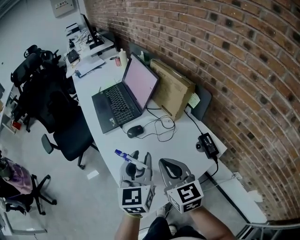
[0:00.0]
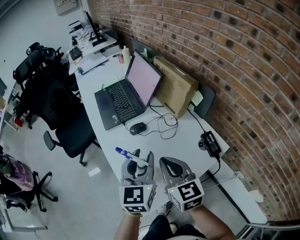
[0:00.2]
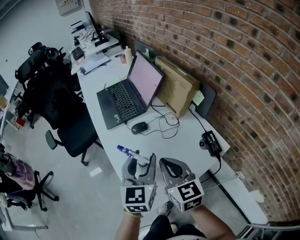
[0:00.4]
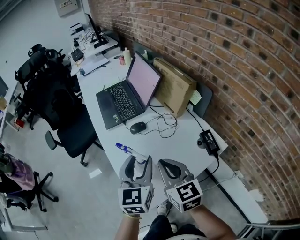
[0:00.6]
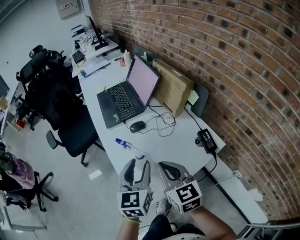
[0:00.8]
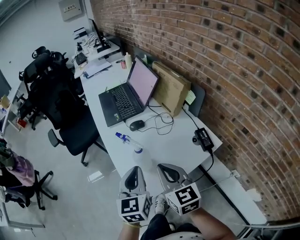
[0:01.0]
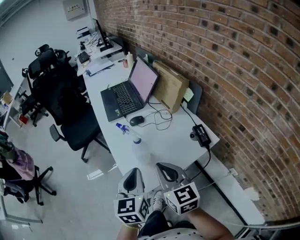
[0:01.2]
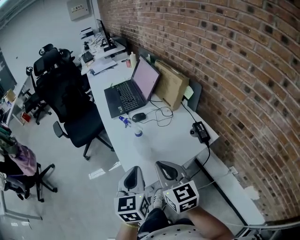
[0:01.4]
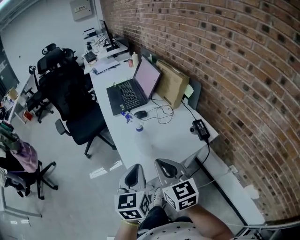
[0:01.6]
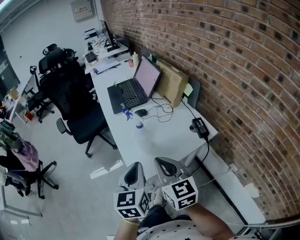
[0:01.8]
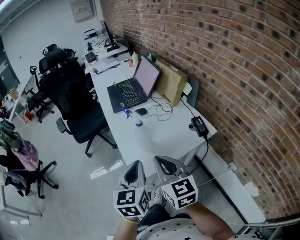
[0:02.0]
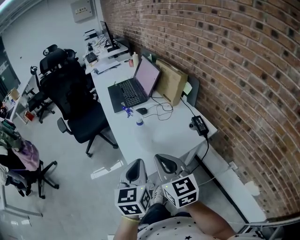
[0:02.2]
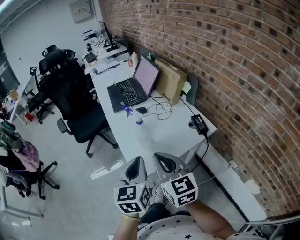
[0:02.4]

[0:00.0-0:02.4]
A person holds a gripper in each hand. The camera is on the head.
0:00.0 to 0:01.2: Both grippers travel together backward, approximately 15 cm. The left gripper closes.
0:01.2 to 0:02.4: The two grippers go about 5 cm backward.

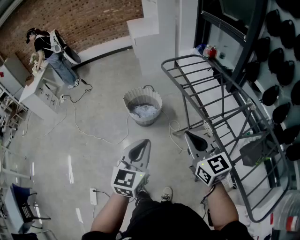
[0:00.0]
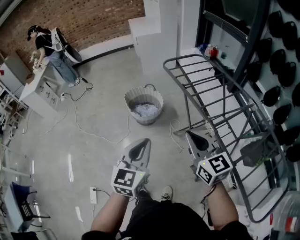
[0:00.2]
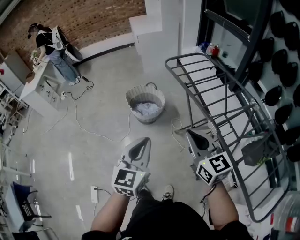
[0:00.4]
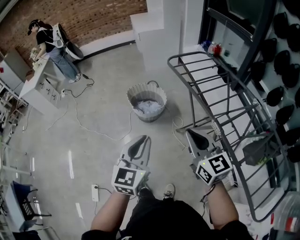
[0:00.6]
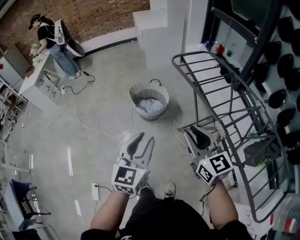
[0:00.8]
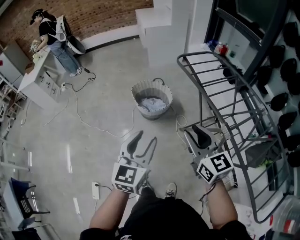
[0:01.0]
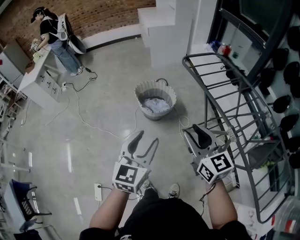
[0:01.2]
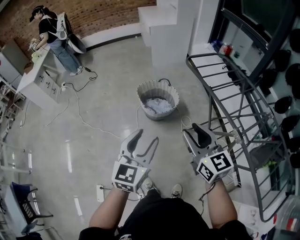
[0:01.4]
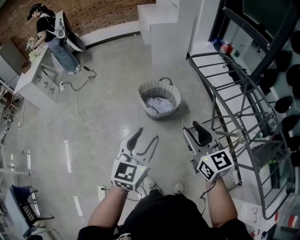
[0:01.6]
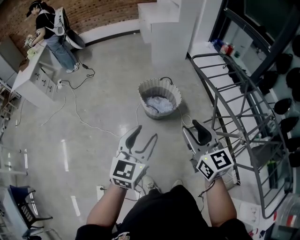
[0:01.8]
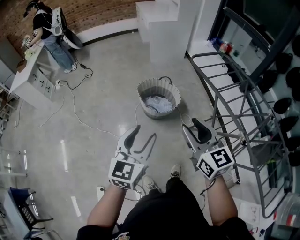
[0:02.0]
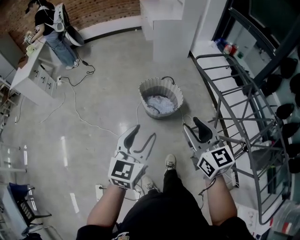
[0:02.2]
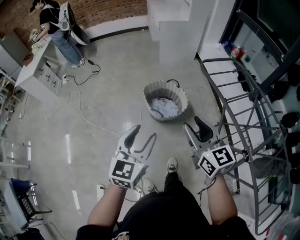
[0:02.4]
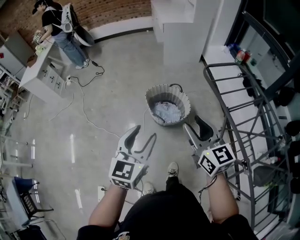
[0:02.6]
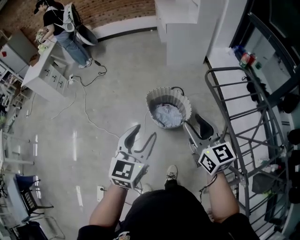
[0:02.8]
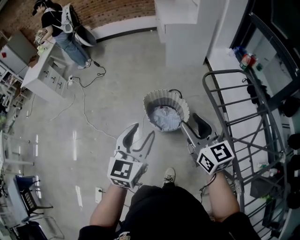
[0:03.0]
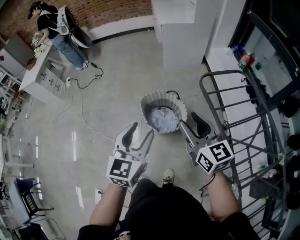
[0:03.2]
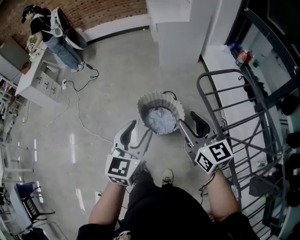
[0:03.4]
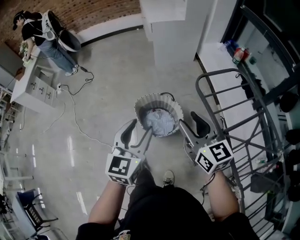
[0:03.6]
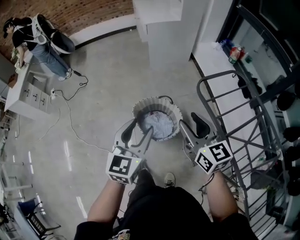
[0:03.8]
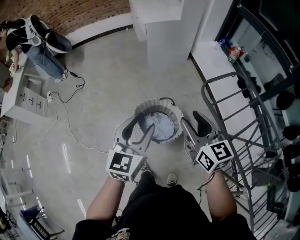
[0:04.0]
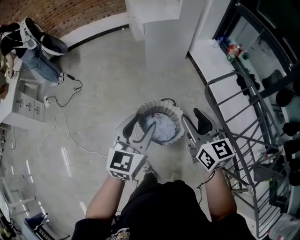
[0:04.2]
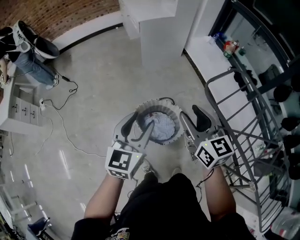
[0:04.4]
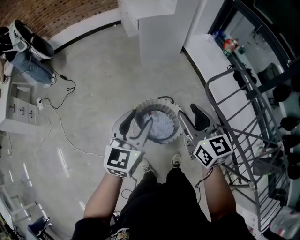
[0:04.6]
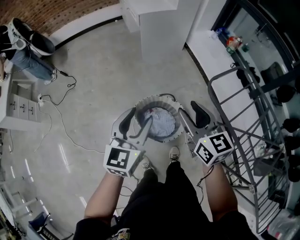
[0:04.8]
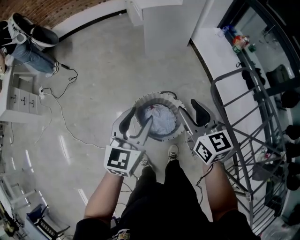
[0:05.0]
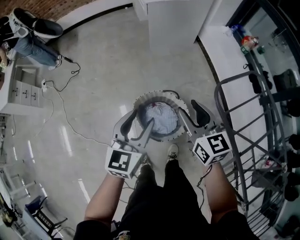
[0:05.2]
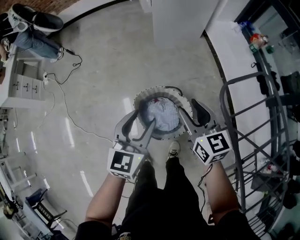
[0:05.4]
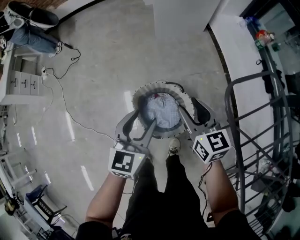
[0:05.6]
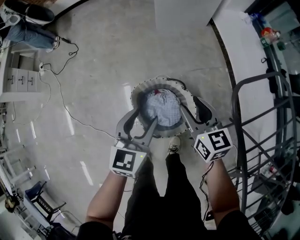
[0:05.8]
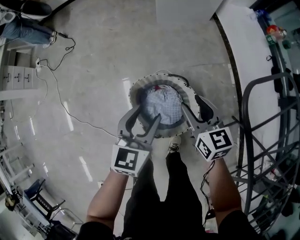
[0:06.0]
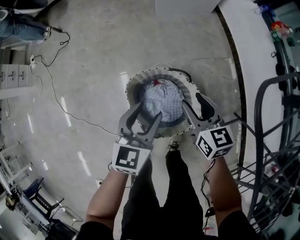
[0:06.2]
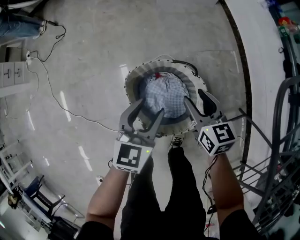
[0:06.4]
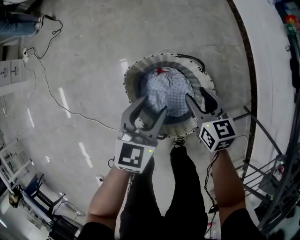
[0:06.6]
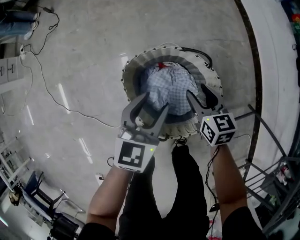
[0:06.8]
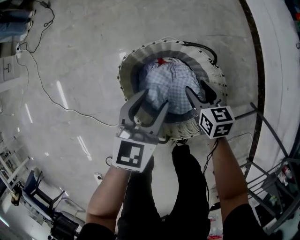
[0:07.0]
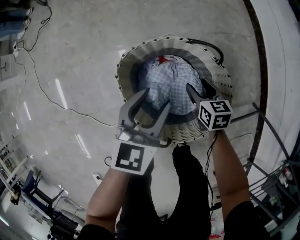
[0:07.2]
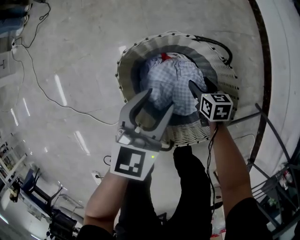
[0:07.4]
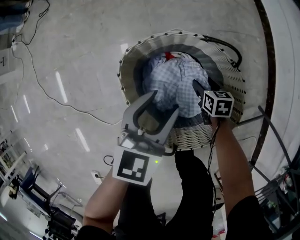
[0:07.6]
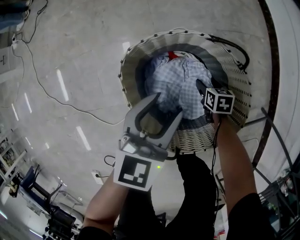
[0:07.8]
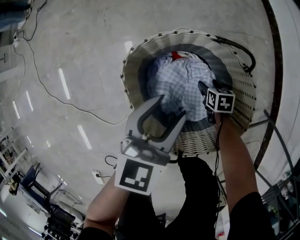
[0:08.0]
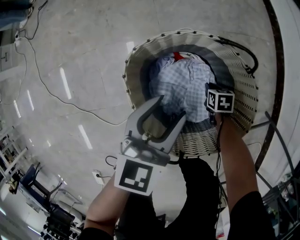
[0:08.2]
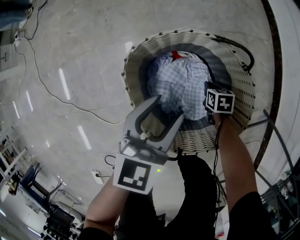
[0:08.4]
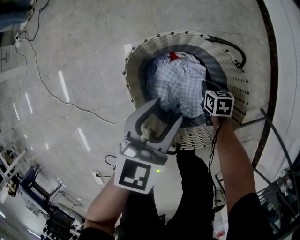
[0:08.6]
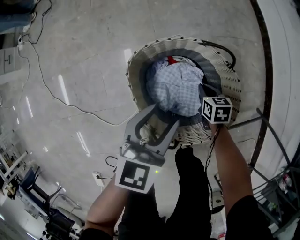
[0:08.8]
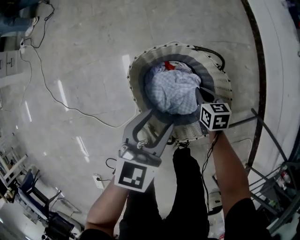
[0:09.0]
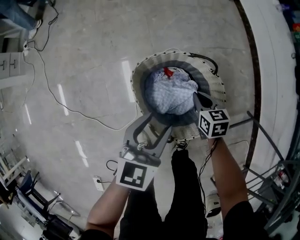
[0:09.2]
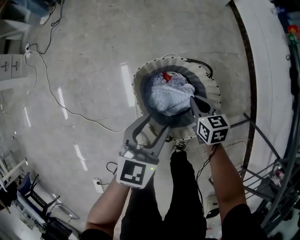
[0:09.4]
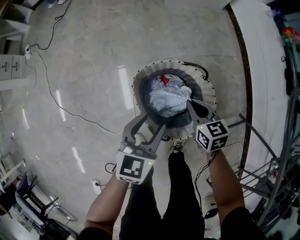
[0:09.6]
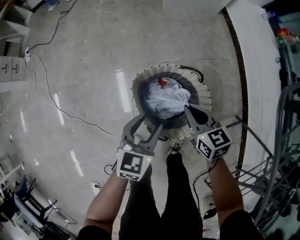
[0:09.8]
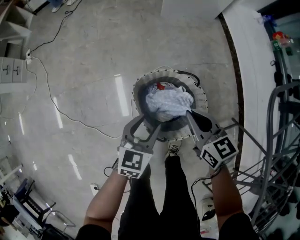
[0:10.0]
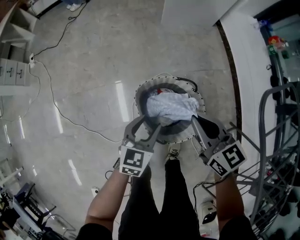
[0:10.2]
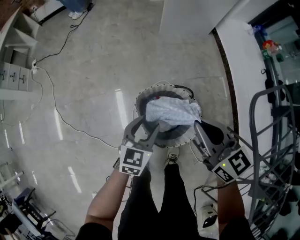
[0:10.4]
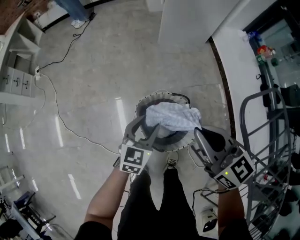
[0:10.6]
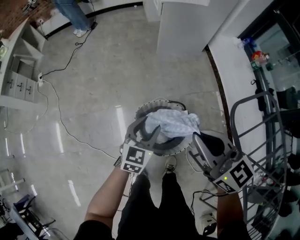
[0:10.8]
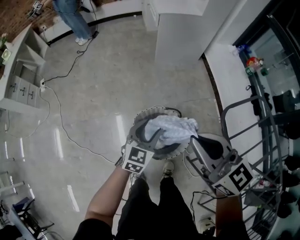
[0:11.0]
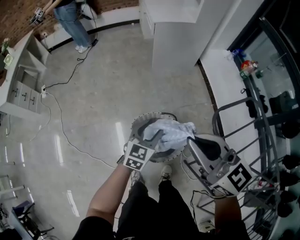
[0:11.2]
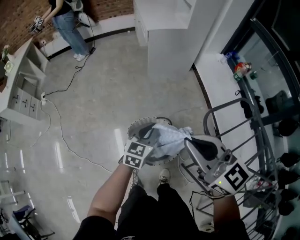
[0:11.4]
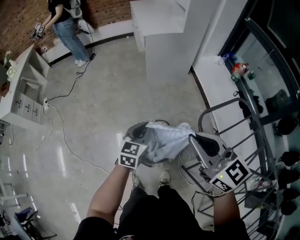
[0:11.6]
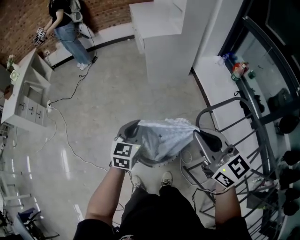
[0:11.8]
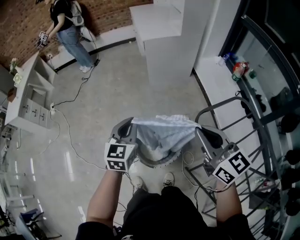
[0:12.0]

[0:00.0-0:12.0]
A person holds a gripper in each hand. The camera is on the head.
0:00.0 to 0:01.6: The grippers both shift to the left and forward by roughly 25 cm. The right gripper opens its fingers. Meanwhile the left gripper opens.
0:01.6 to 0:03.0: Both grippers travel together forward, some 25 cm.
0:03.0 to 0:04.4: The two grippers go about 25 cm forward.
0:04.4 to 0:06.0: The left gripper is displaced downward by about 25 cm; the right gripper travels downward and forward by roughly 35 cm.
0:06.0 to 0:07.6: The left gripper heads downward, covering some 30 cm, while the right gripper shifts roughly 50 cm downward, and angles its fingers downward, by about 30 degrees.
0:07.6 to 0:09.0: Both grippers travel together upward, about 10 cm. The right gripper closes.
0:09.0 to 0:10.4: The left gripper goes approximately 15 cm upward. The right gripper shifts about 50 cm upward, and points its fingers approximately 30 degrees further upward.
0:10.4 to 0:12.0: The right gripper travels upward and to the right by about 30 cm. The left gripper travels upward by roughly 30 cm, and closes its fingers.

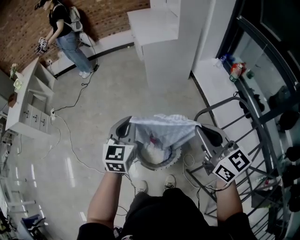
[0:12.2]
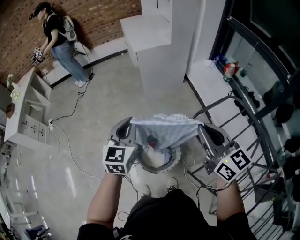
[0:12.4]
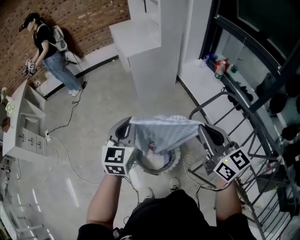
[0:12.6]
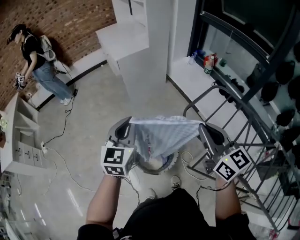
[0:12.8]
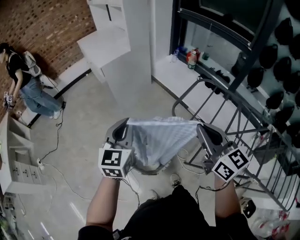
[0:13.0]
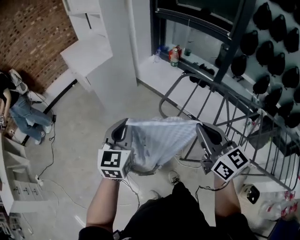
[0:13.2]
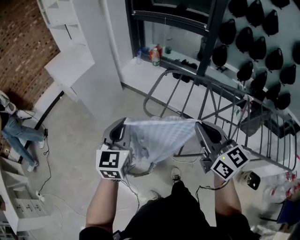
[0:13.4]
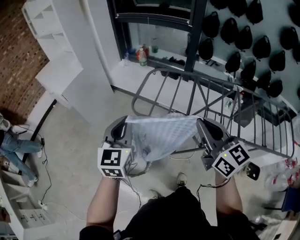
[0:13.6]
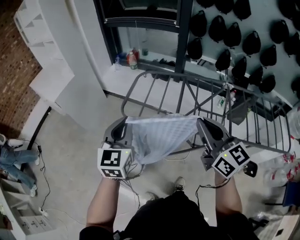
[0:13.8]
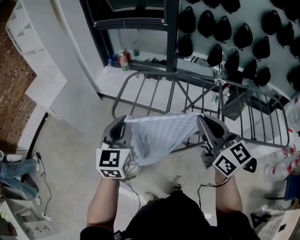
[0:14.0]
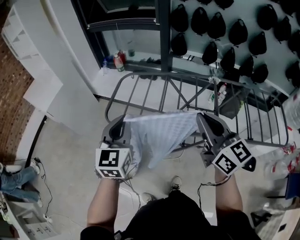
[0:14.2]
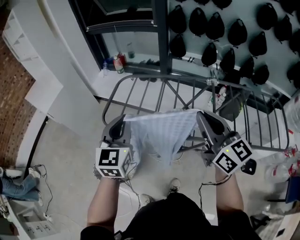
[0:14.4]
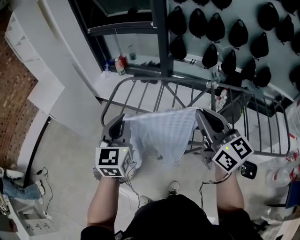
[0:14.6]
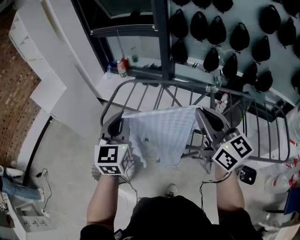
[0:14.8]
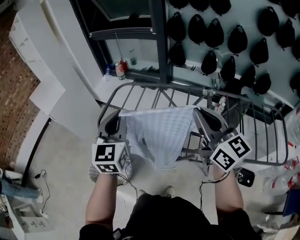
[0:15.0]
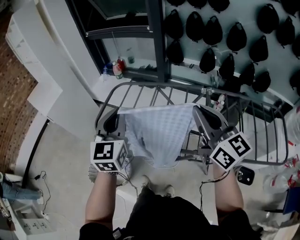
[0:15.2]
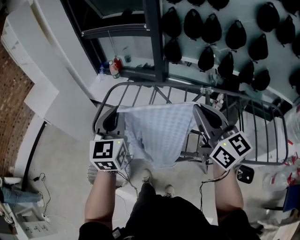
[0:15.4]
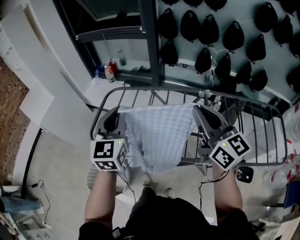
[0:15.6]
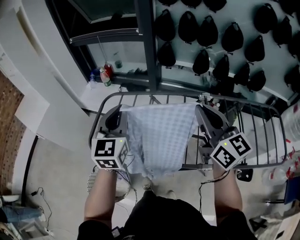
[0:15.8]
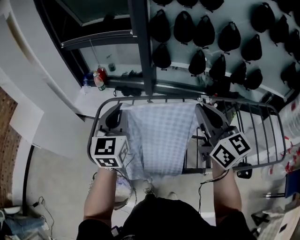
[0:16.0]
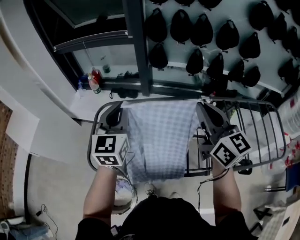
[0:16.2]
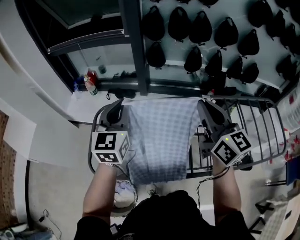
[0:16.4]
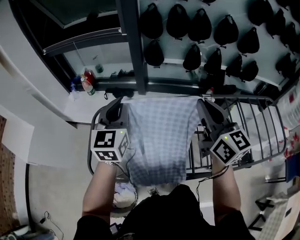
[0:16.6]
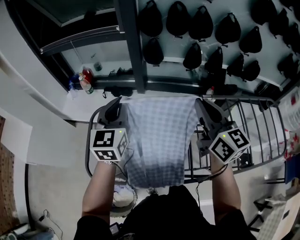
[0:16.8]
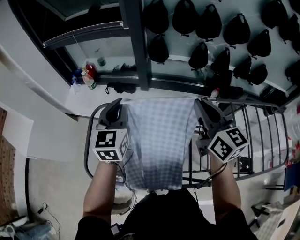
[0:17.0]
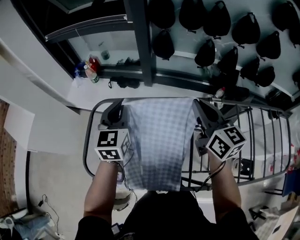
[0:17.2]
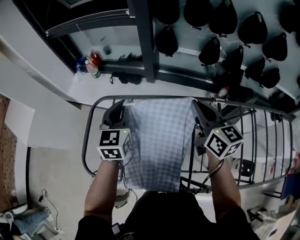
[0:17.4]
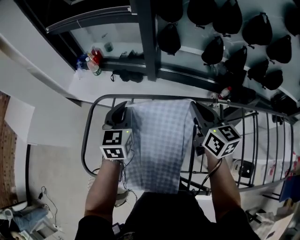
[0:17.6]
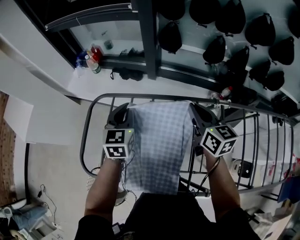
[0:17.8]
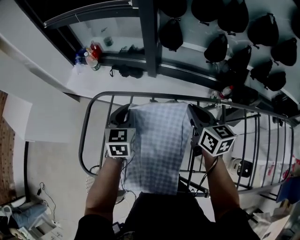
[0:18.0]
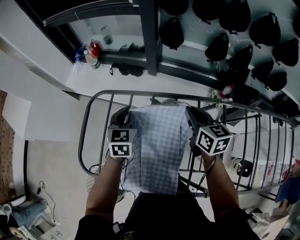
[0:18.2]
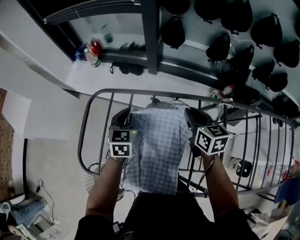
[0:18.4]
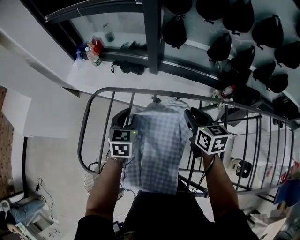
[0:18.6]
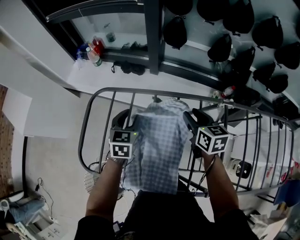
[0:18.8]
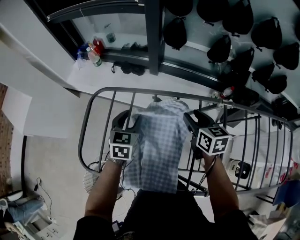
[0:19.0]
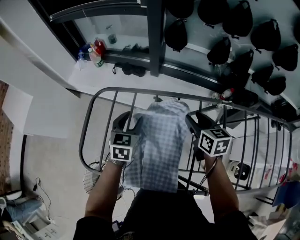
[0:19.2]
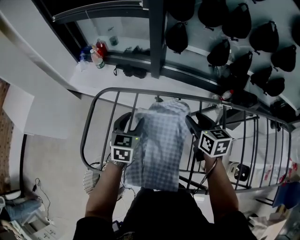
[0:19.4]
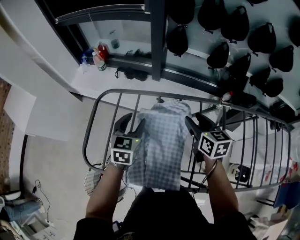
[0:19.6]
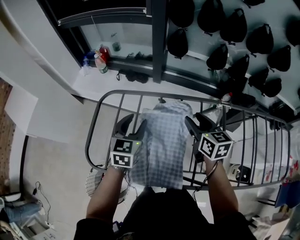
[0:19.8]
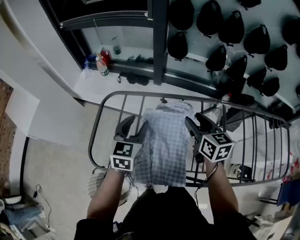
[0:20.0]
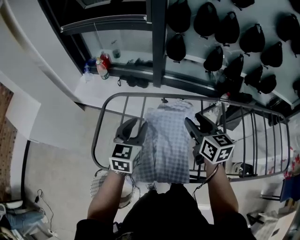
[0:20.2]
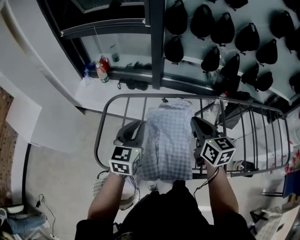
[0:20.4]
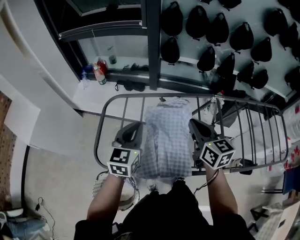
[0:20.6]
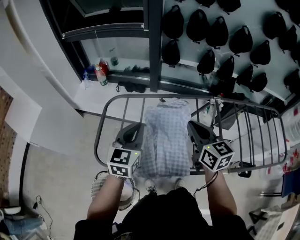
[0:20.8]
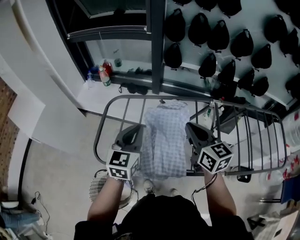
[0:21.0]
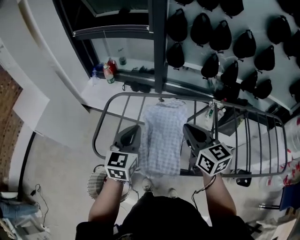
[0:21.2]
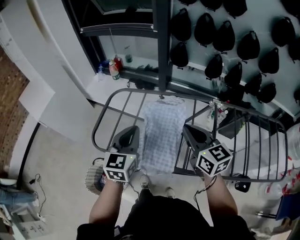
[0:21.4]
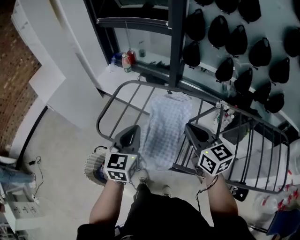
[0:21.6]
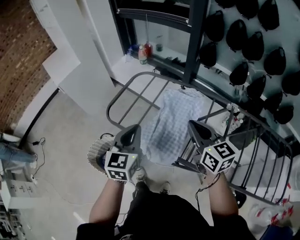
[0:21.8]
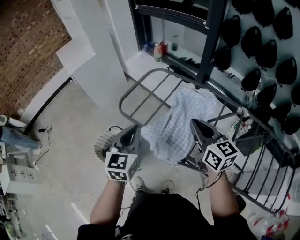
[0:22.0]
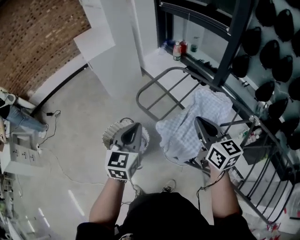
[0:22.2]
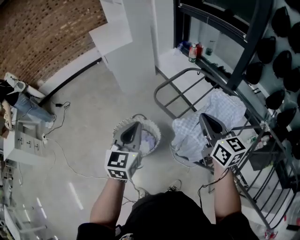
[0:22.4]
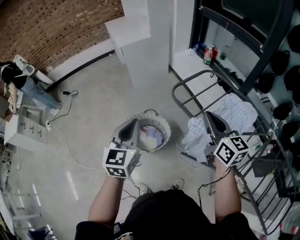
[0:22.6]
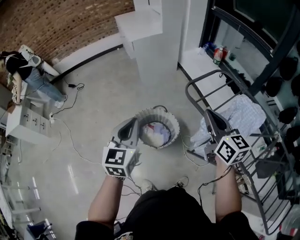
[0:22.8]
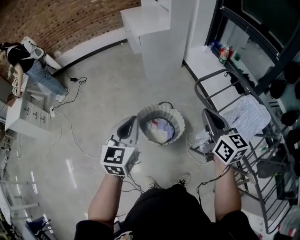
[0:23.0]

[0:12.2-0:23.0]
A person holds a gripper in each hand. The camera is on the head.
0:12.2 to 0:13.8: The right gripper changes place by about 35 cm, and swivels some 60 degrees, while the left gripper moves about 30 cm, and swivels roughly 50 degrees.
0:13.8 to 0:15.2: The grippers both shift to the right by about 20 cm.
0:15.2 to 0:16.8: The grippers both shift forward by roughly 25 cm. The left gripper rotates about 20 degrees; the right gripper swivels about 20 degrees.
0:16.8 to 0:18.4: The right gripper moves downward and forward, approximately 25 cm, and rotates roughly 30 degrees. Meanwhile the left gripper is displaced downward by roughly 25 cm, and rotates about 30 degrees.
0:18.4 to 0:20.0: Both grippers travel together backward and upward, about 10 cm. The left gripper opens; the right gripper opens its fingers.
0:20.0 to 0:21.4: The grippers both shift backward and upward by about 15 cm. The left gripper closes up, while the right gripper closes.
0:21.4 to 0:23.0: The pair of grippers is taken some 50 cm. The left gripper turns by about 50 degrees; the right gripper swivels approximately 40 degrees.
